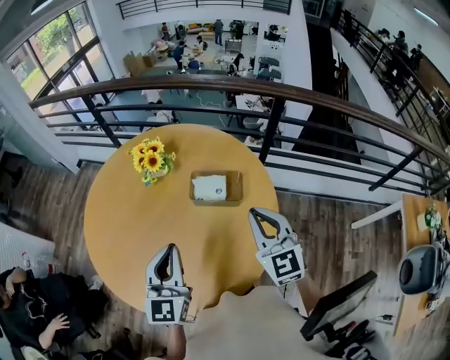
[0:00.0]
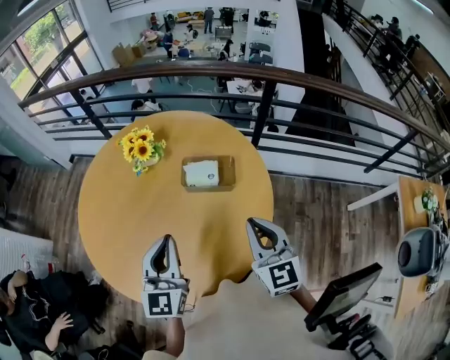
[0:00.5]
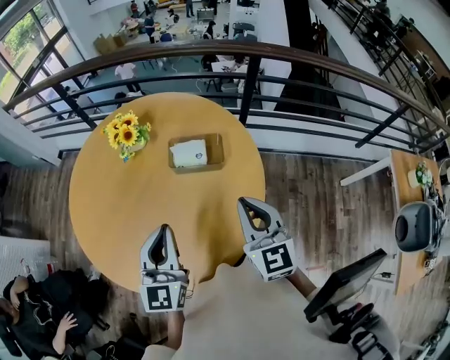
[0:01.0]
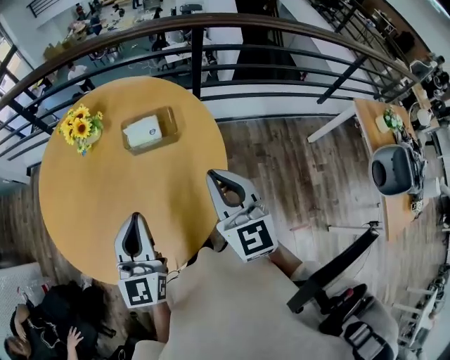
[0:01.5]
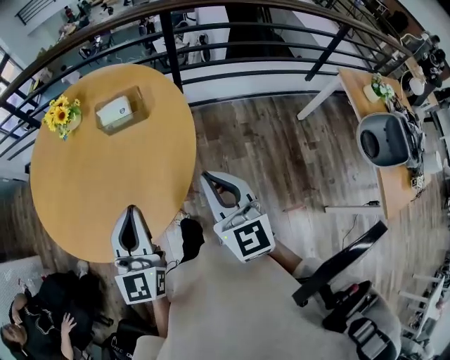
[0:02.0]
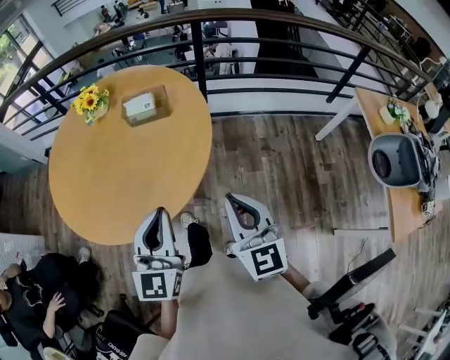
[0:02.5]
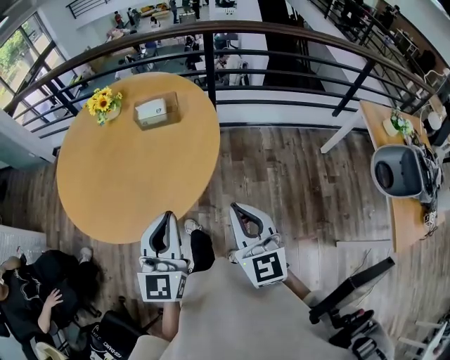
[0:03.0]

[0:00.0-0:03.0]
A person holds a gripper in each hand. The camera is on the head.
0:00.0 to 0:01.5: The left gripper ends up about 5 cm from where it was, while the right gripper heads backward, covering about 10 cm.
0:01.5 to 0:03.0: The left gripper travels backward and to the right by some 20 cm, while the right gripper heads backward, covering approximately 20 cm.

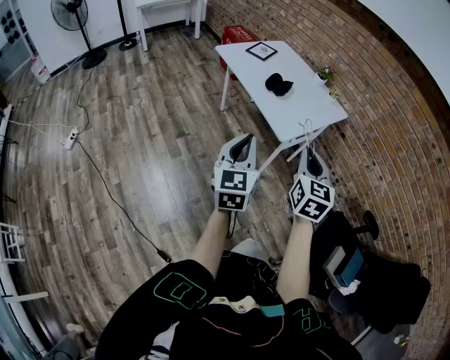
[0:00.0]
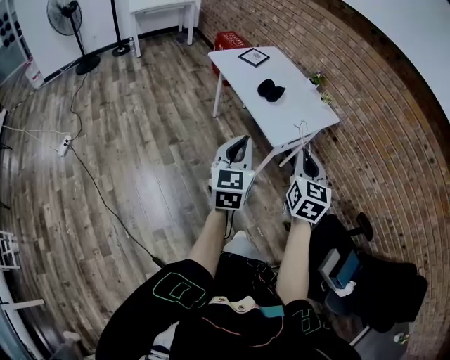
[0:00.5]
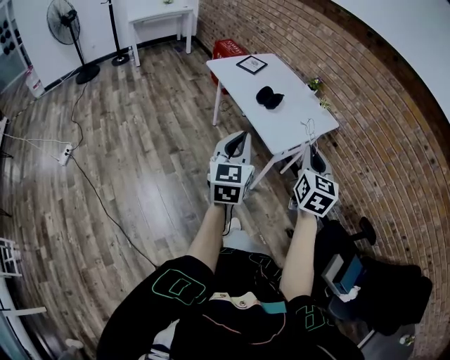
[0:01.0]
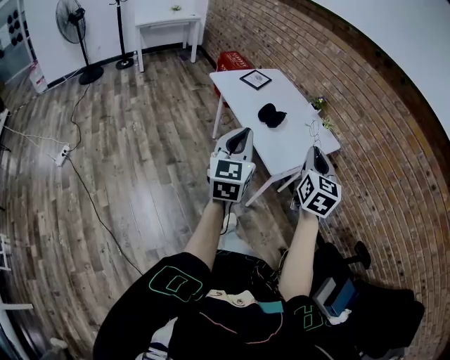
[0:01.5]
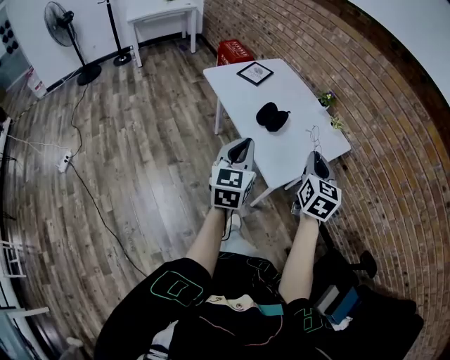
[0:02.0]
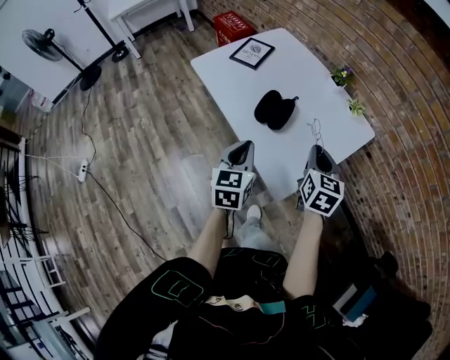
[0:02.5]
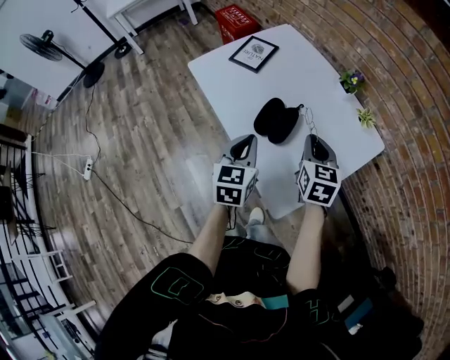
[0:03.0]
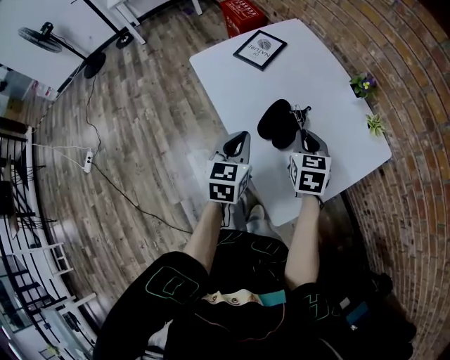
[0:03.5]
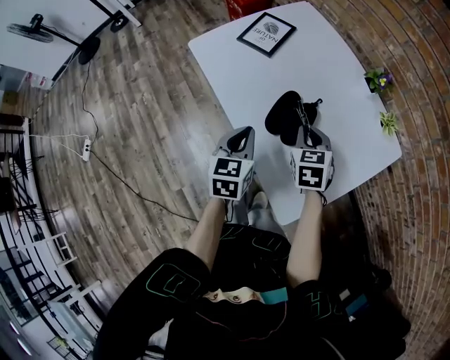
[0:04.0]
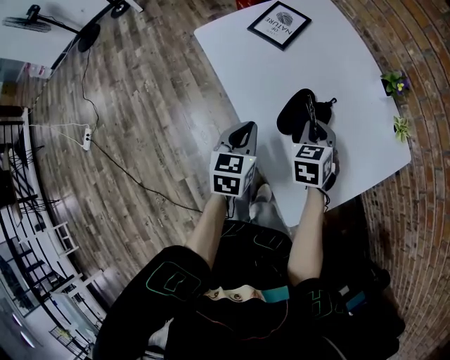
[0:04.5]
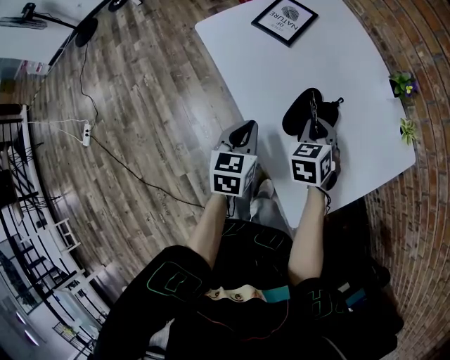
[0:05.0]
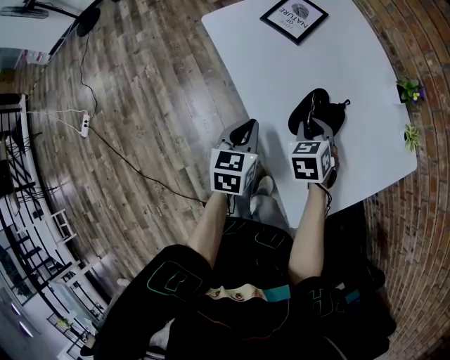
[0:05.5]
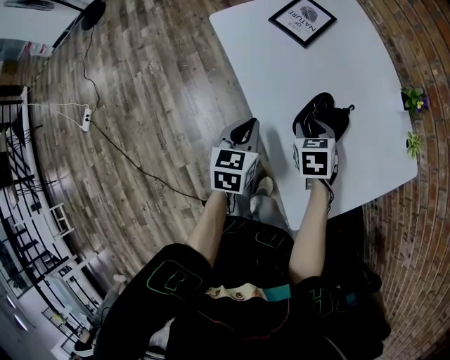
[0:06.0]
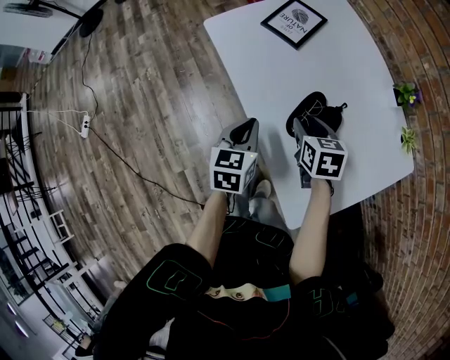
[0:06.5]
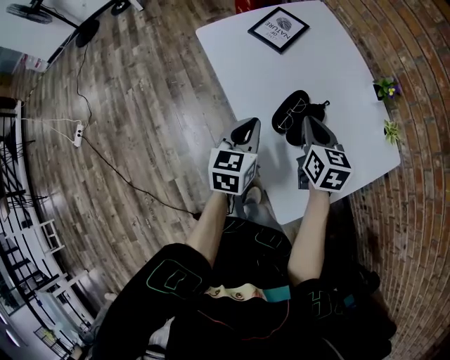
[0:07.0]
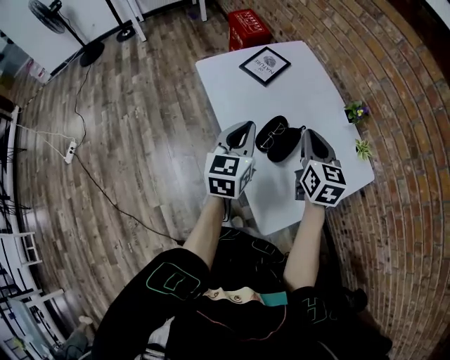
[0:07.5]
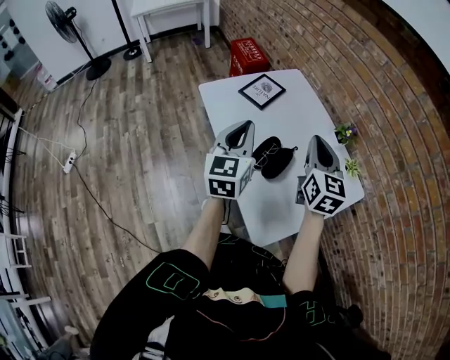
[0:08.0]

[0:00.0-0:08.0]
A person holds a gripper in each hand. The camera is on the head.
0:00.0 to 0:02.0: The grippers both shift forward by about 25 cm.
0:02.0 to 0:04.0: The two grippers go roughly 35 cm forward and downward. The left gripper swivels about 30 degrees. Meanwhile the right gripper turns by some 30 degrees.
0:04.0 to 0:06.0: The left gripper moves to the left, some 5 cm, while the right gripper goes some 10 cm to the left and downward, and opens up.
0:06.0 to 0:08.0: The grippers both shift upward by approximately 25 cm. The left gripper tilts its fingers approximately 30 degrees upward, while the right gripper tips its fingers upward by approximately 50 degrees, and closes.

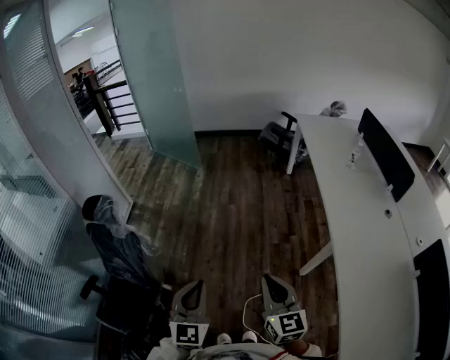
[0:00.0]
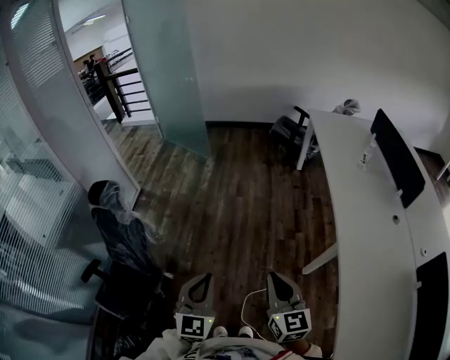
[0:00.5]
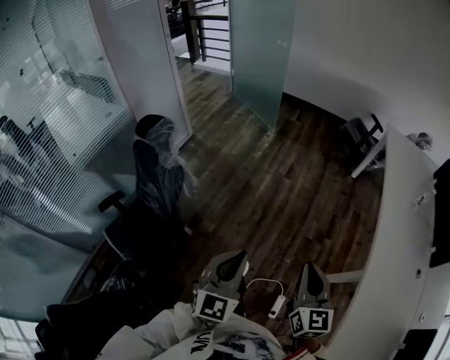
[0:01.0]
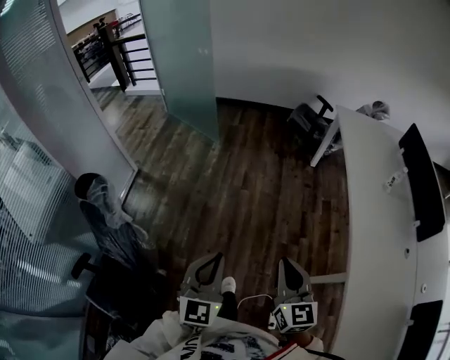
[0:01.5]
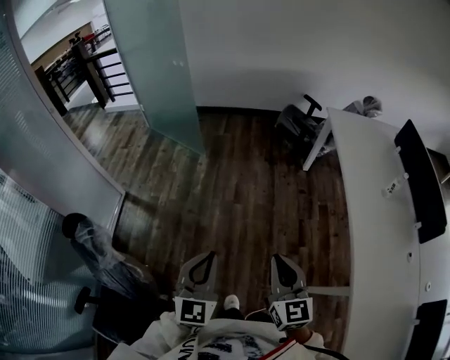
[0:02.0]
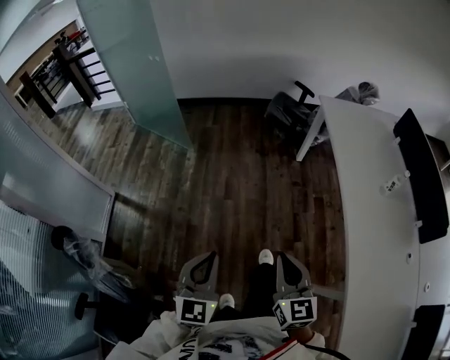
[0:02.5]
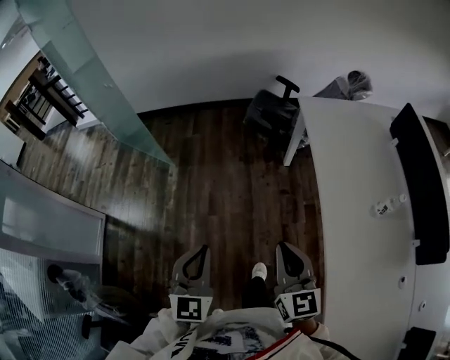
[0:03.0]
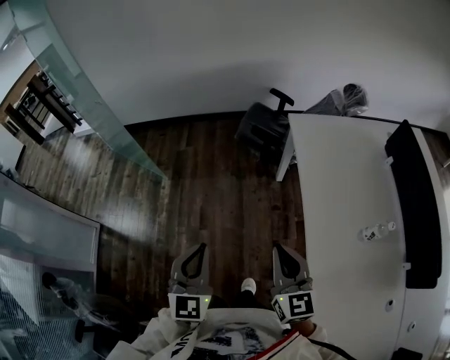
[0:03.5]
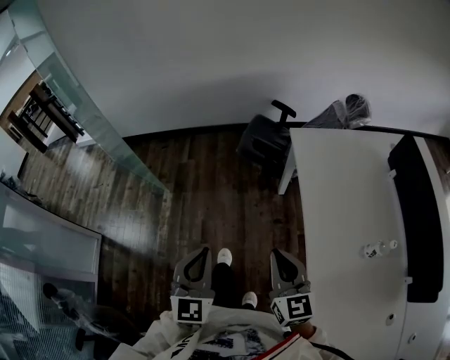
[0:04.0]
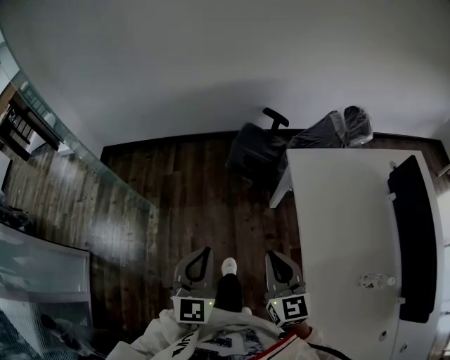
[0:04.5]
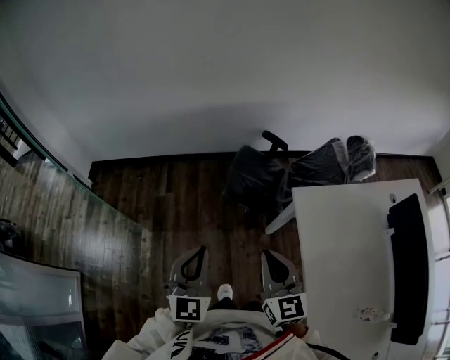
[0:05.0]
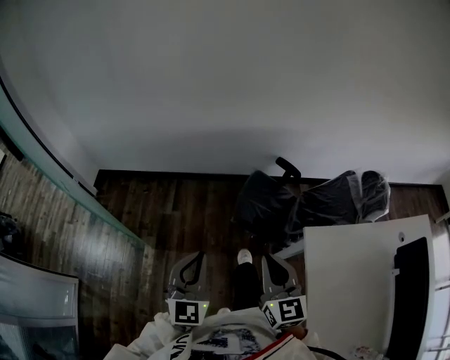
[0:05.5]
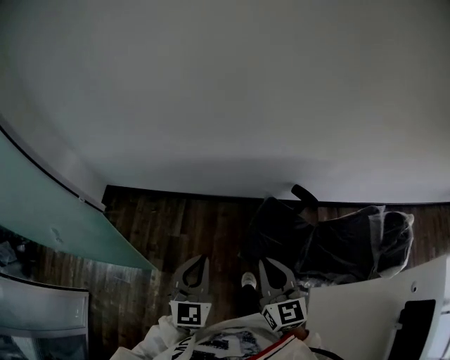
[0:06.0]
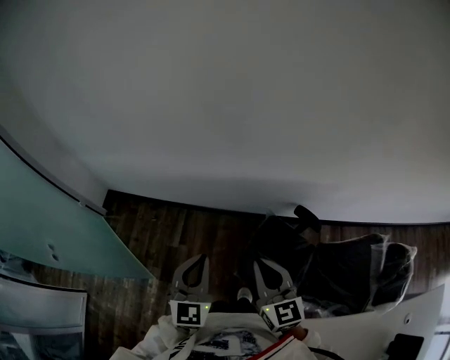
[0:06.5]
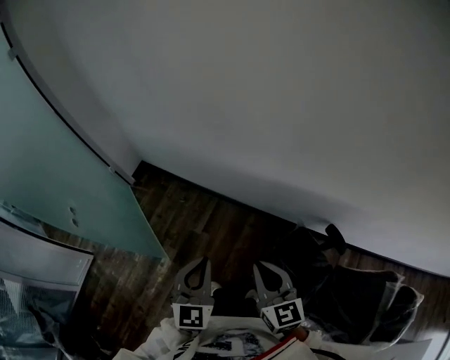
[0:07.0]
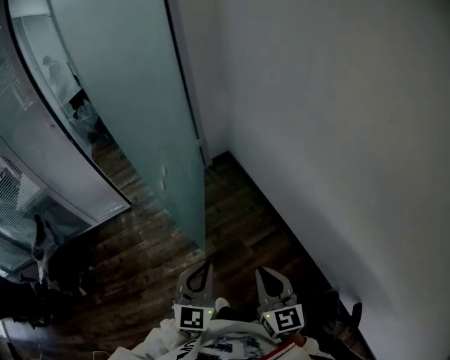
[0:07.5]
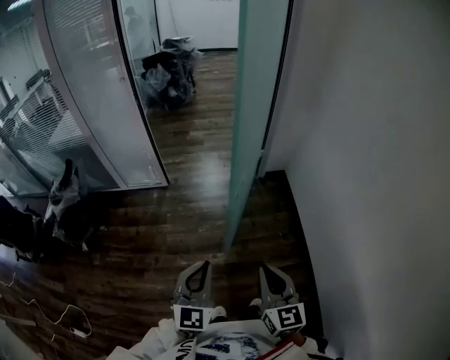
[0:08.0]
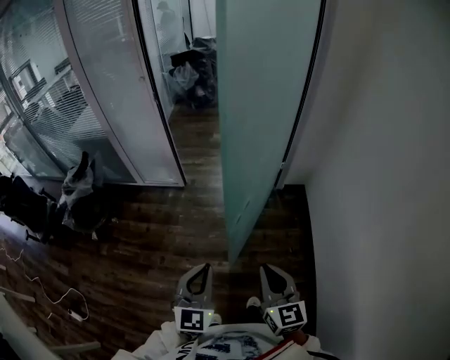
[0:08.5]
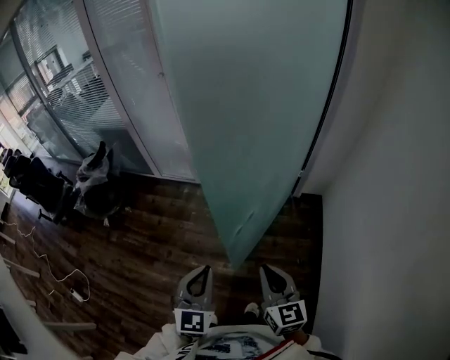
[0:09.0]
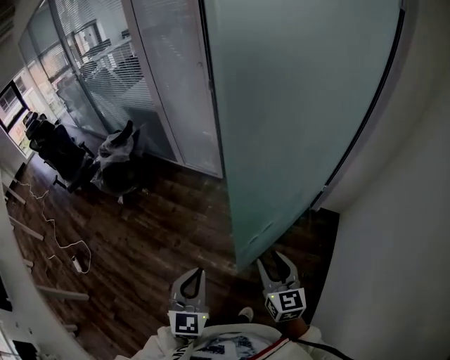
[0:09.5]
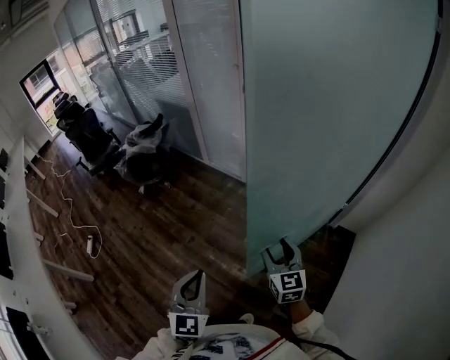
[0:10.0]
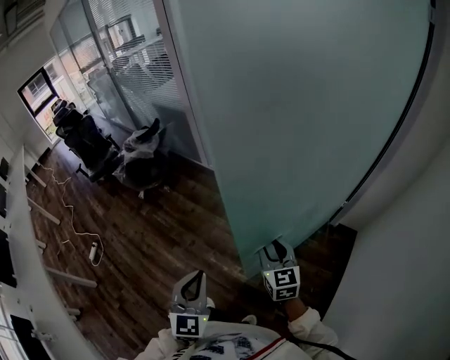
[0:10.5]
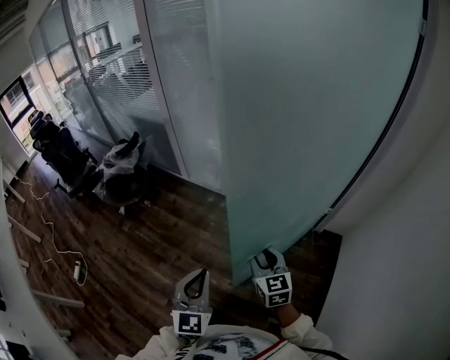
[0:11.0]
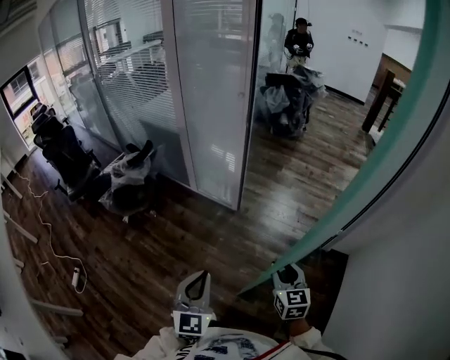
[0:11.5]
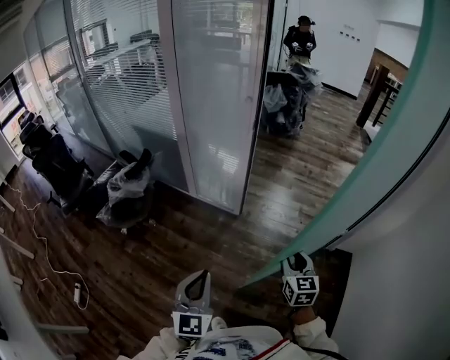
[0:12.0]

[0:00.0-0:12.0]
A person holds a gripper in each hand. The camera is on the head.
0:00.0 to 0:02.0: Both grippers move forward, some 35 cm.
0:02.0 to 0:04.0: The pair of grippers is taken forward and to the right, approximately 50 cm.
0:04.0 to 0:06.0: Both grippers are carried forward, approximately 70 cm.
0:06.0 to 0:08.0: The pair of grippers is taken about 50 cm. The right gripper rotates some 70 degrees, while the left gripper swivels some 70 degrees.
0:08.0 to 0:10.0: The right gripper shifts by roughly 30 cm, turns by approximately 40 degrees, and opens its fingers; the left gripper turns by some 50 degrees.
0:10.0 to 0:12.0: The right gripper moves forward, some 20 cm, and closes its fingers. The left gripper travels forward and to the left by some 30 cm.

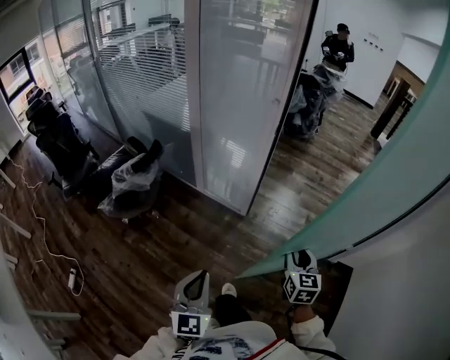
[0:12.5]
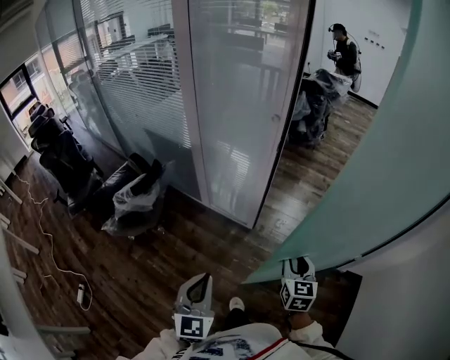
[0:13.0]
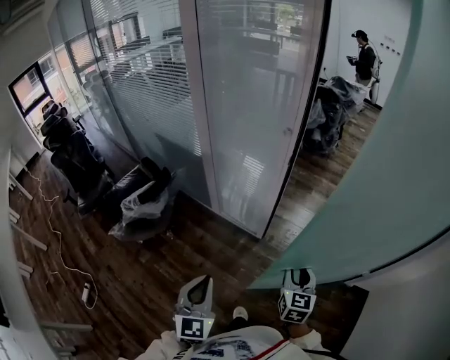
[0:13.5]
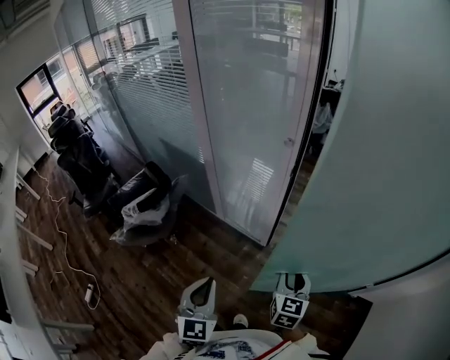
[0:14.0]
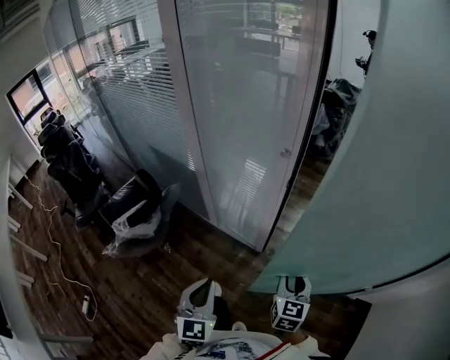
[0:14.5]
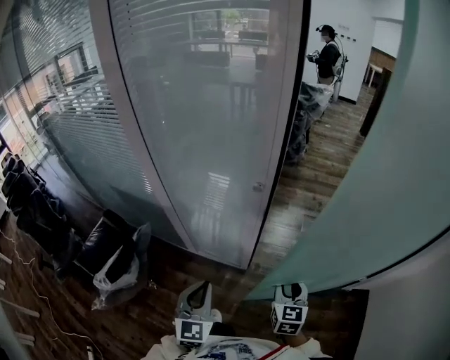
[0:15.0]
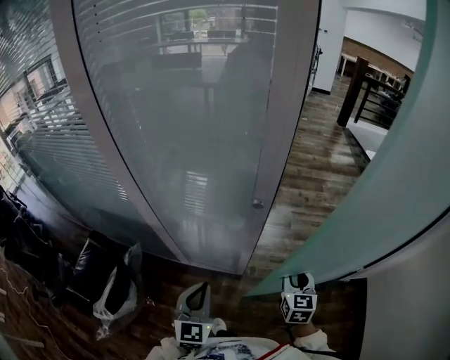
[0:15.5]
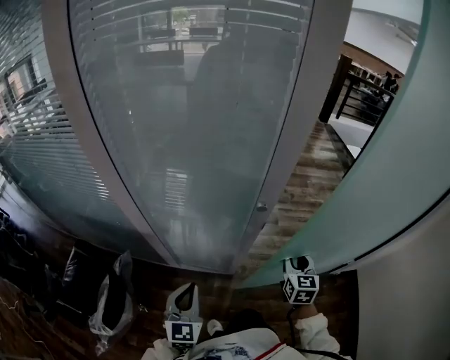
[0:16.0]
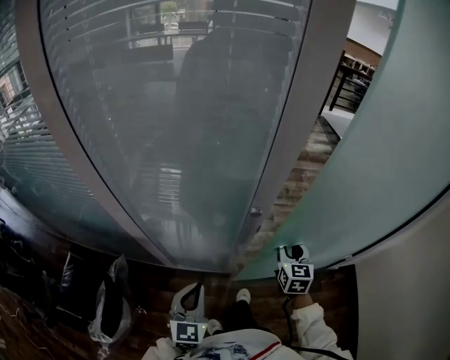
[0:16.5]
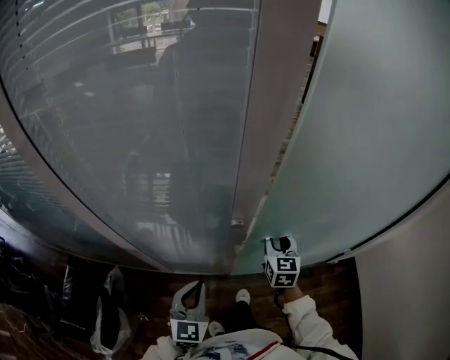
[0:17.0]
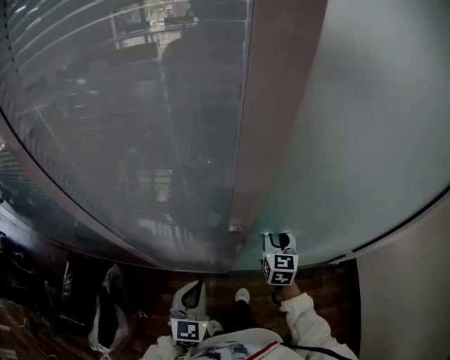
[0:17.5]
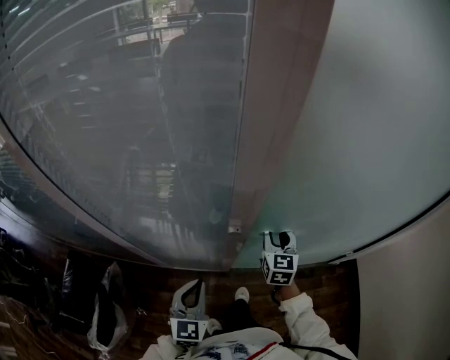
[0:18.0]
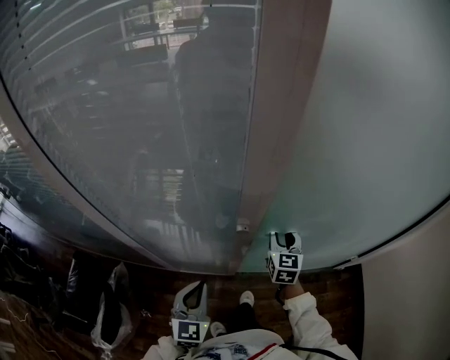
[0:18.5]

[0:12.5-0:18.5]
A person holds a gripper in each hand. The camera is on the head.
0:12.5 to 0:14.5: Both grippers move forward, some 20 cm.
0:14.5 to 0:16.5: Both grippers travel together forward, approximately 25 cm. The right gripper changes its angle by approximately 20 degrees. Meanwhile the left gripper changes its angle by some 30 degrees.
0:16.5 to 0:18.5: The grippers both shift forward by some 5 cm.
